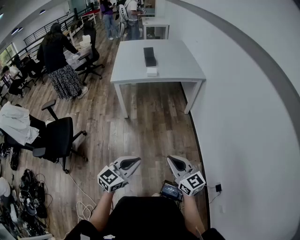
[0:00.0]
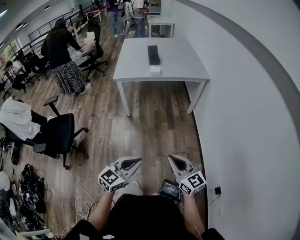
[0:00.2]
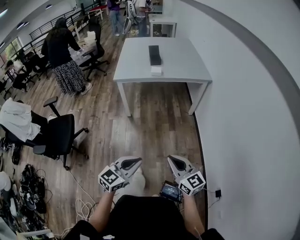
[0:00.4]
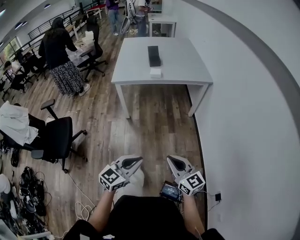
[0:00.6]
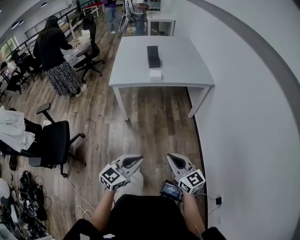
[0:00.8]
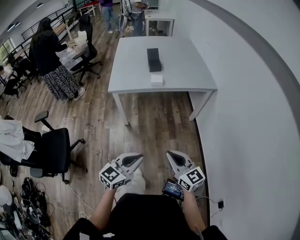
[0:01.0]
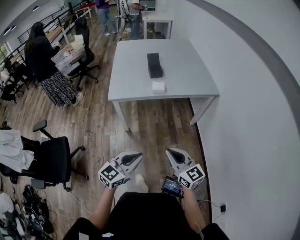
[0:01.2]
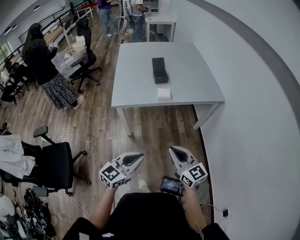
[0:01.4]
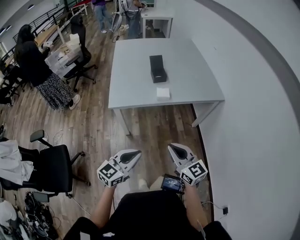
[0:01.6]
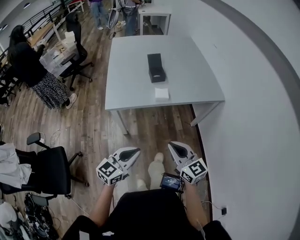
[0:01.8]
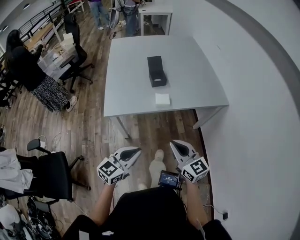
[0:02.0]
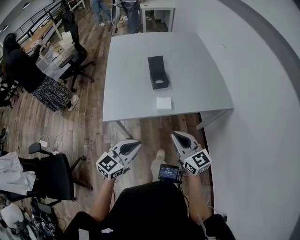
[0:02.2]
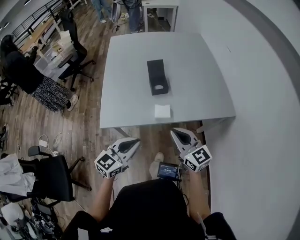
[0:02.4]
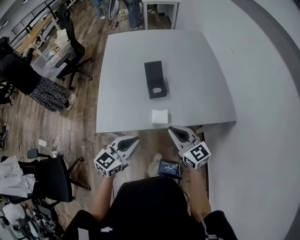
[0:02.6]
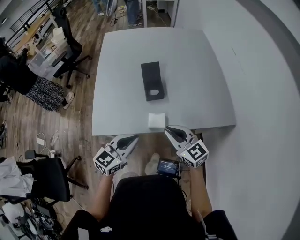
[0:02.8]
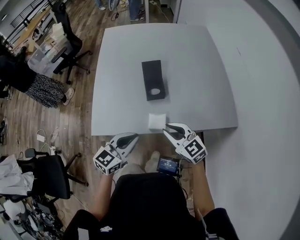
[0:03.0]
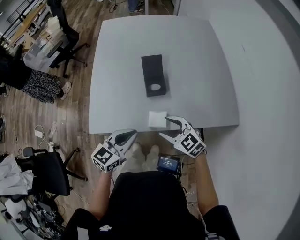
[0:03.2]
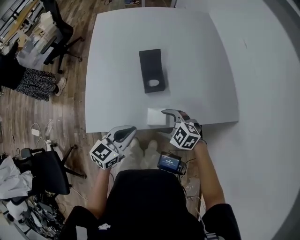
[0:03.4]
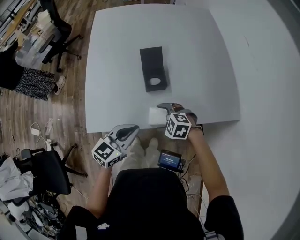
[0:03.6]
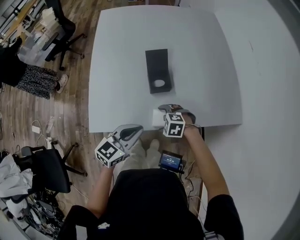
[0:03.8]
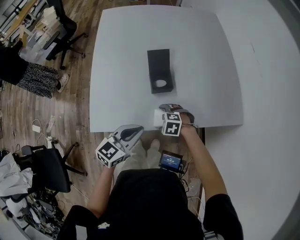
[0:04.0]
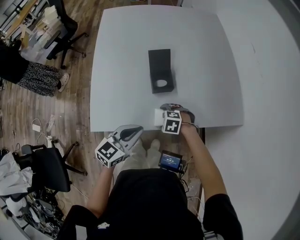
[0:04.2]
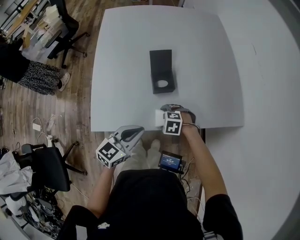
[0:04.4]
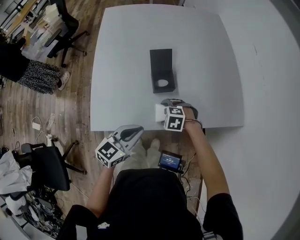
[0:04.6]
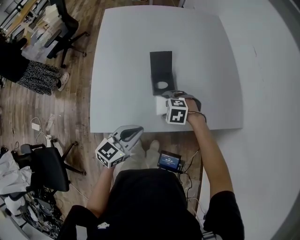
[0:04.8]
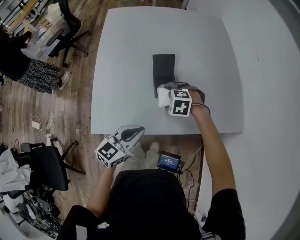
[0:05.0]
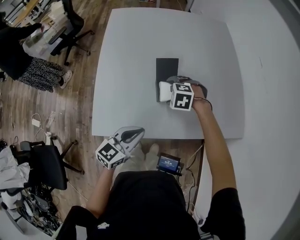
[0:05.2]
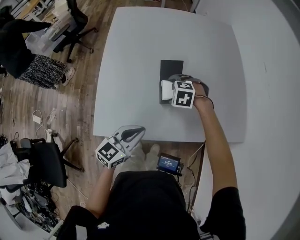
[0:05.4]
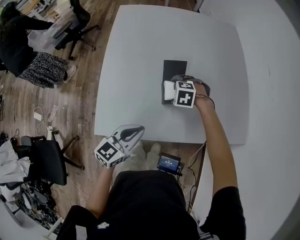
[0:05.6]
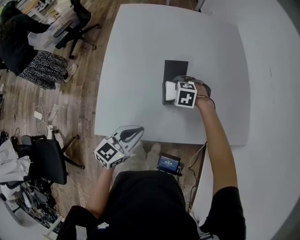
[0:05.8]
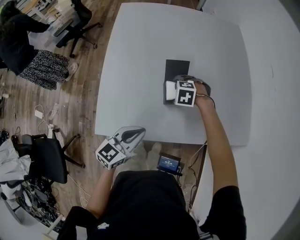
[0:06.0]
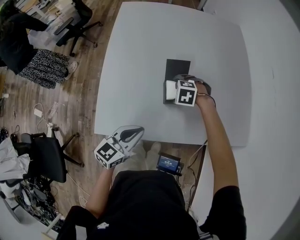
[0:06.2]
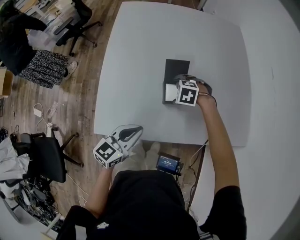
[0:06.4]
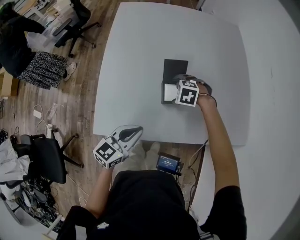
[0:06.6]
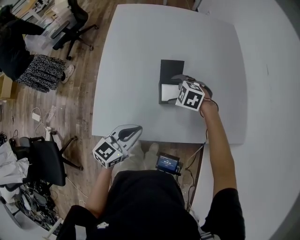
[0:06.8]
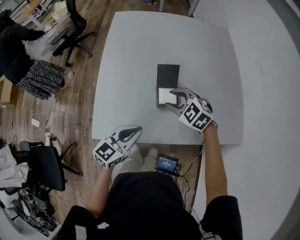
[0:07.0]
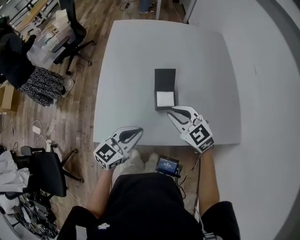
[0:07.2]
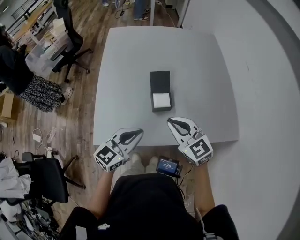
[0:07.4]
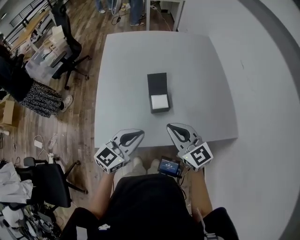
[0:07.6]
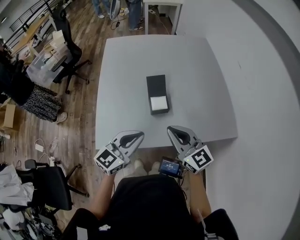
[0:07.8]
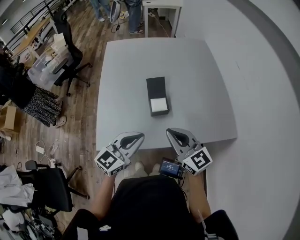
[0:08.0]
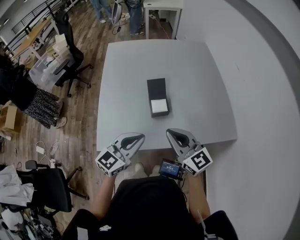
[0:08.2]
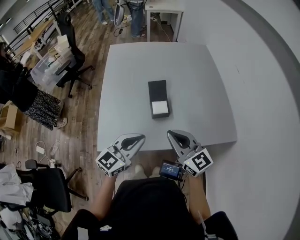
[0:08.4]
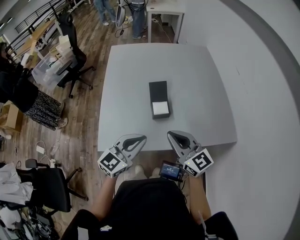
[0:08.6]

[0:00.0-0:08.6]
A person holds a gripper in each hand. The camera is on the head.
0:00.0 to 0:01.4: Both grippers travel together forward, some 40 cm.
0:01.4 to 0:02.8: The pair of grippers is taken forward, approximately 40 cm.
0:02.8 to 0:04.4: The right gripper heads downward, covering some 25 cm, angles its fingers downward, by some 60 degrees, and opens up. The left gripper ends up approximately 10 cm from where it was.
0:04.4 to 0:05.8: The right gripper changes place by some 20 cm. Meanwhile the left gripper moves about 5 cm.
0:05.8 to 0:07.2: The right gripper is displaced upward by some 20 cm, angles its fingers upward, by roughly 50 degrees, and closes its fingers, while the left gripper moves approximately 5 cm.
0:07.2 to 0:08.6: The left gripper travels upward and backward by roughly 10 cm. Meanwhile the right gripper is displaced backward and upward by some 15 cm, and changes its angle by about 30 degrees.

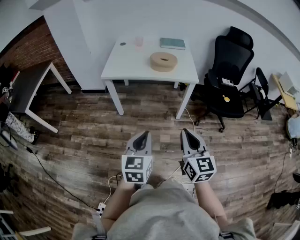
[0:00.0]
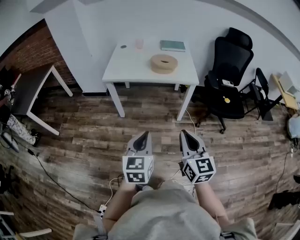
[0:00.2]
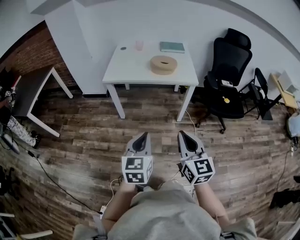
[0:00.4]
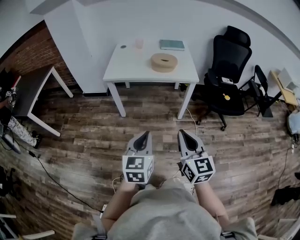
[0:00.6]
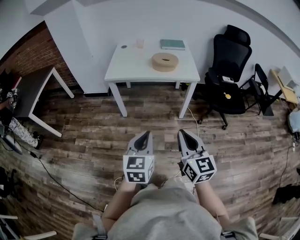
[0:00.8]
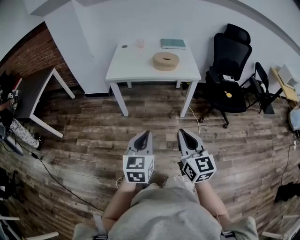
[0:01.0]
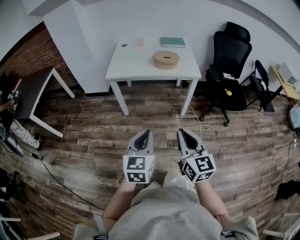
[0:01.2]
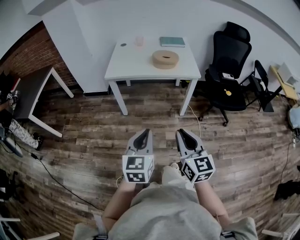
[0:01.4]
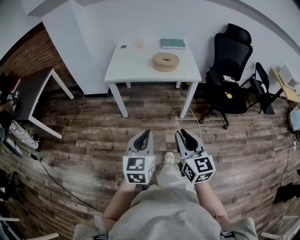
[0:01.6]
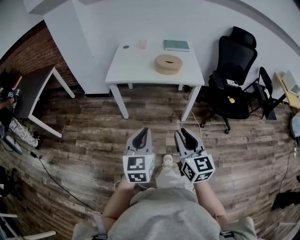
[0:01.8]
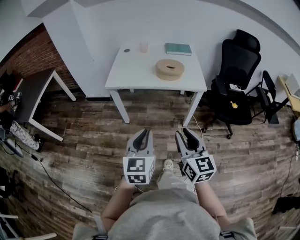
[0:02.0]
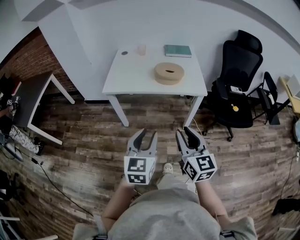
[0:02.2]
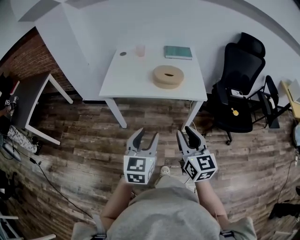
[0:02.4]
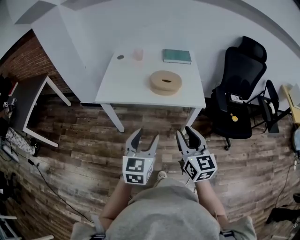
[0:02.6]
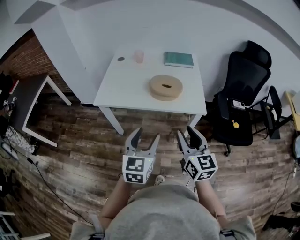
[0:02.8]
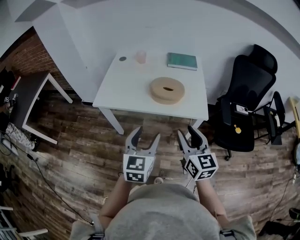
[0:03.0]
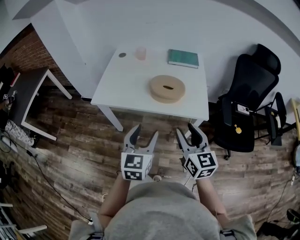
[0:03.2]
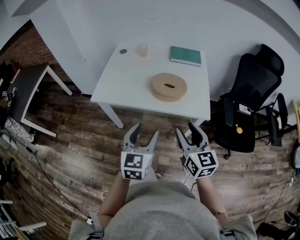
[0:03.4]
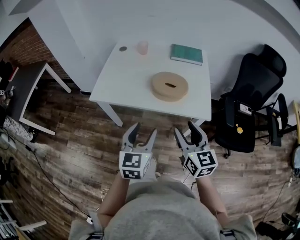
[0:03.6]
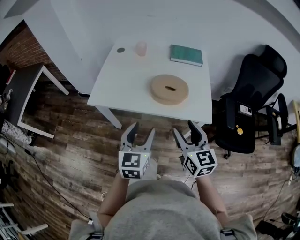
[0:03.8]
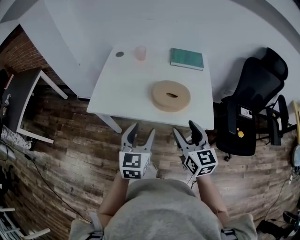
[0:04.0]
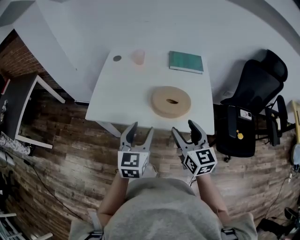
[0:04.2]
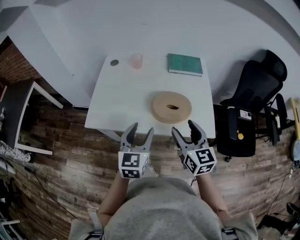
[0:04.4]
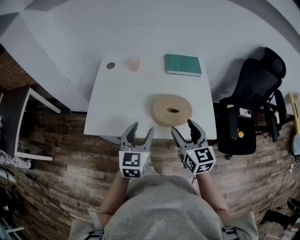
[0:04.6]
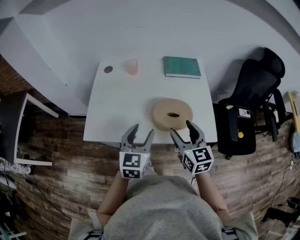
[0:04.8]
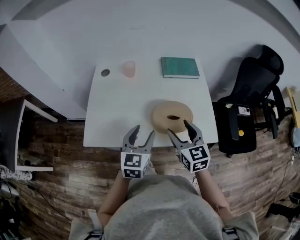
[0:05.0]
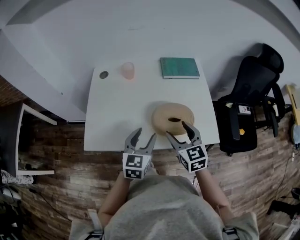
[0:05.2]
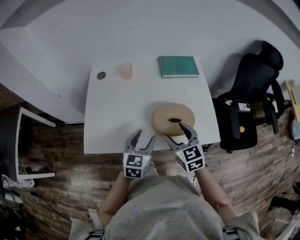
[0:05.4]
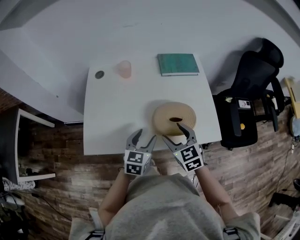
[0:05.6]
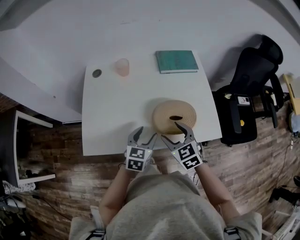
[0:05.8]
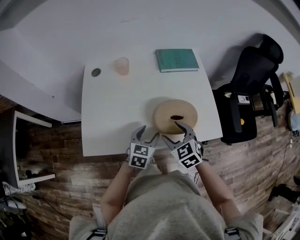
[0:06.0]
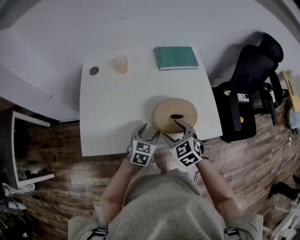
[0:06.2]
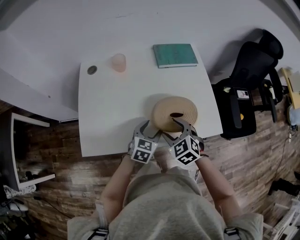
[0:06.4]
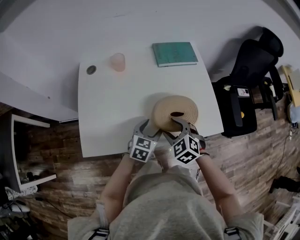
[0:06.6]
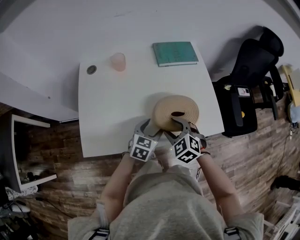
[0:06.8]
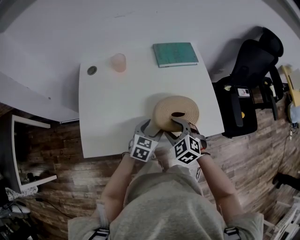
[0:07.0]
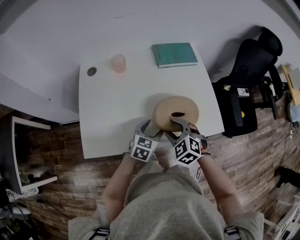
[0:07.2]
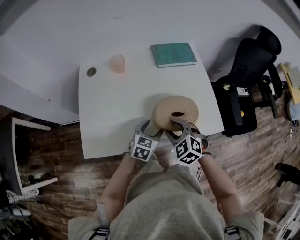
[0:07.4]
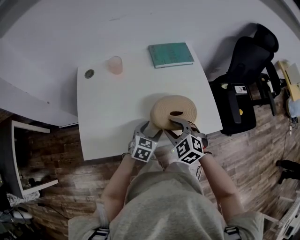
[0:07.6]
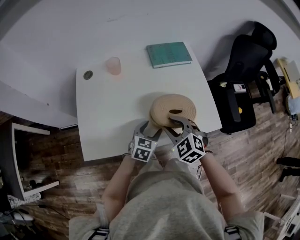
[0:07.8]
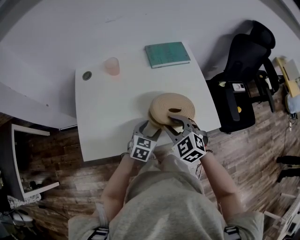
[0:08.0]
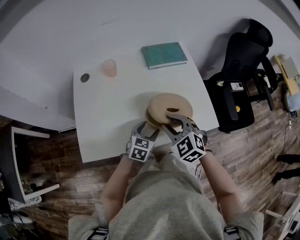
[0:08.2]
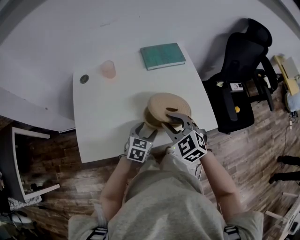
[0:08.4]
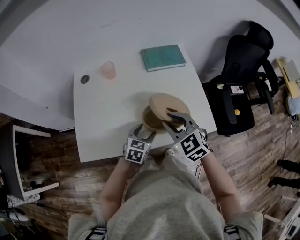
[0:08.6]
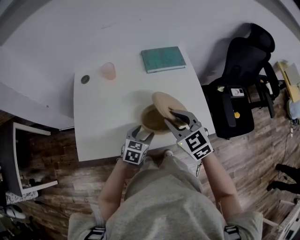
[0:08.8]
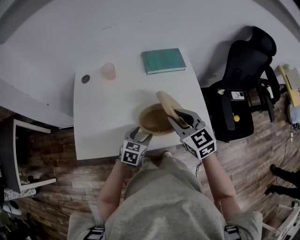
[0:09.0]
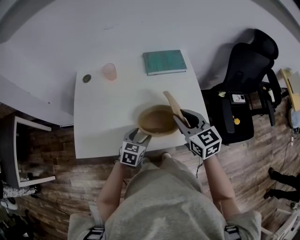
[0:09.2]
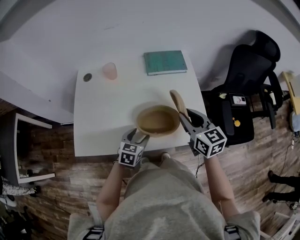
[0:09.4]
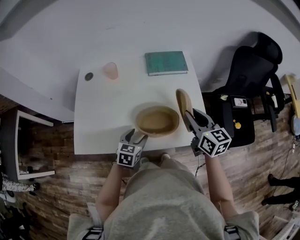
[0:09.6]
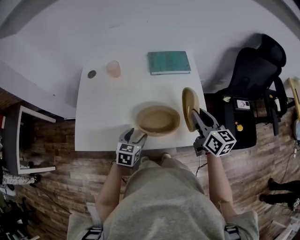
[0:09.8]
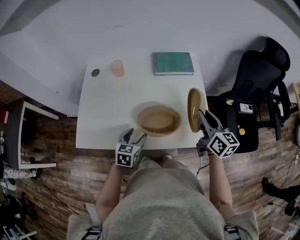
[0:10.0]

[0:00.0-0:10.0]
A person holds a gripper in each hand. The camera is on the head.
0:00.0 to 0:01.4: The right gripper shifts approximately 5 cm to the left.
0:01.4 to 0:02.8: Both grippers move forward, about 30 cm. The left gripper opens, while the right gripper opens up.
0:02.8 to 0:04.2: The grippers both shift forward by about 20 cm. The right gripper opens.
0:04.2 to 0:05.8: The right gripper heads forward, downward and to the left, covering some 20 cm, and rotates roughly 30 degrees. Meanwhile the left gripper travels forward and downward by approximately 20 cm, and changes its angle by about 30 degrees.
0:05.8 to 0:07.2: The left gripper moves roughly 5 cm. Meanwhile the right gripper turns by approximately 20 degrees.
0:07.2 to 0:08.6: The right gripper travels upward by about 10 cm.
0:08.6 to 0:10.0: The right gripper shifts roughly 20 cm to the right, and rolls clockwise, seen from behind, by roughly 50 degrees.

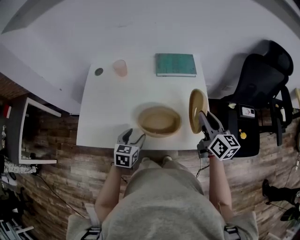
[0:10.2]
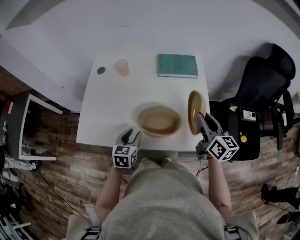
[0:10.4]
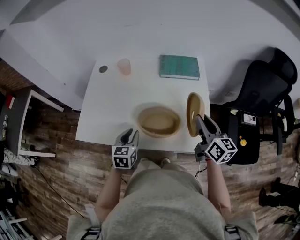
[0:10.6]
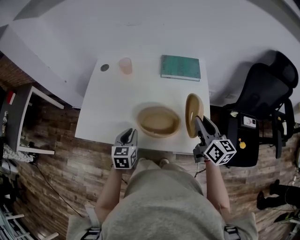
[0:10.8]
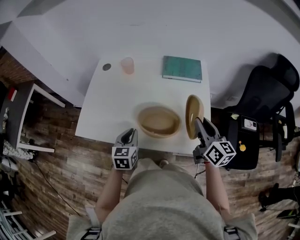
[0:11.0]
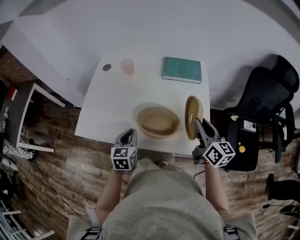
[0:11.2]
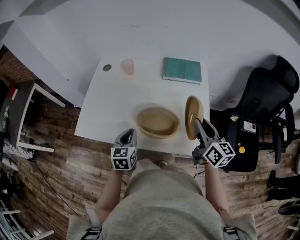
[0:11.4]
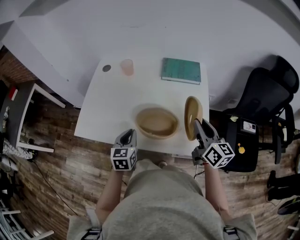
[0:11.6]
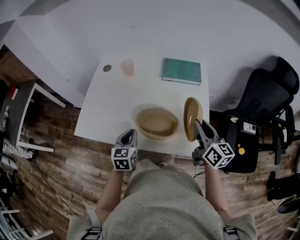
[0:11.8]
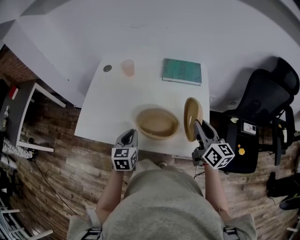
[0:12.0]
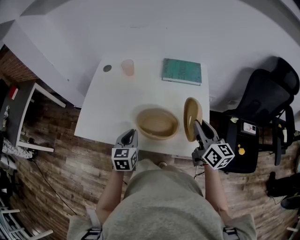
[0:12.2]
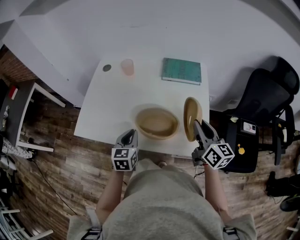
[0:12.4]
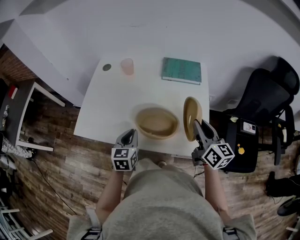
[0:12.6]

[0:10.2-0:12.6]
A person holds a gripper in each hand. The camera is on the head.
0:10.2 to 0:11.4: The left gripper closes up.
0:11.4 to 0:12.6: Both grippers stay about where they are.

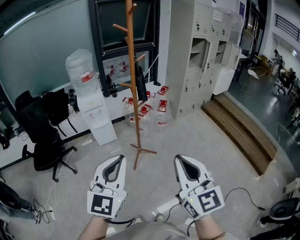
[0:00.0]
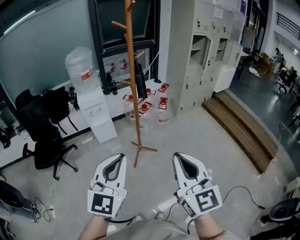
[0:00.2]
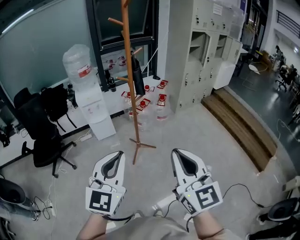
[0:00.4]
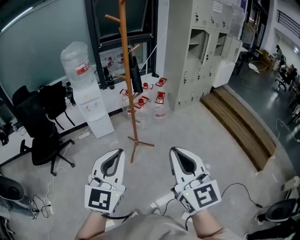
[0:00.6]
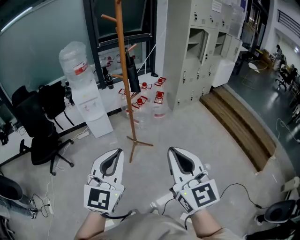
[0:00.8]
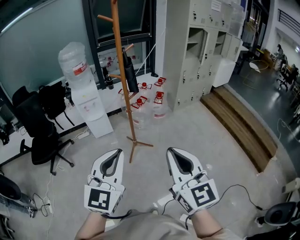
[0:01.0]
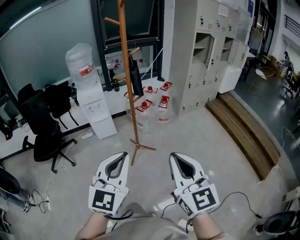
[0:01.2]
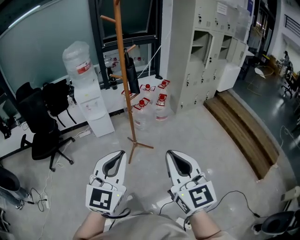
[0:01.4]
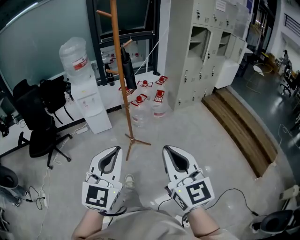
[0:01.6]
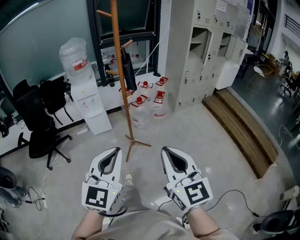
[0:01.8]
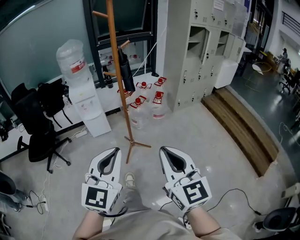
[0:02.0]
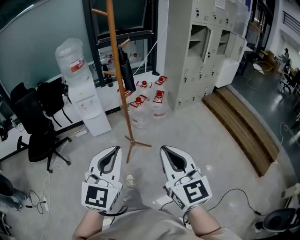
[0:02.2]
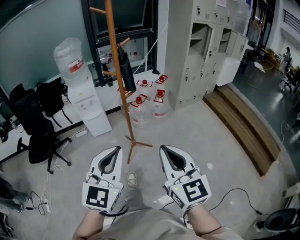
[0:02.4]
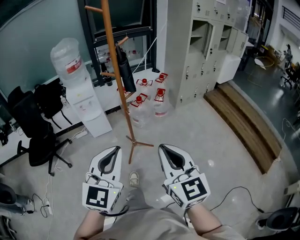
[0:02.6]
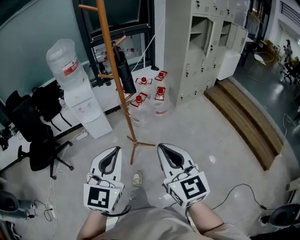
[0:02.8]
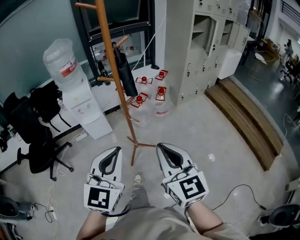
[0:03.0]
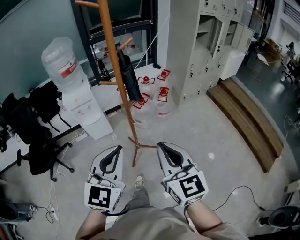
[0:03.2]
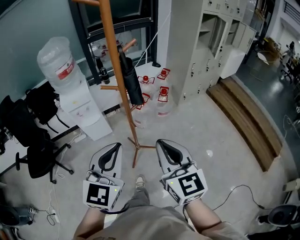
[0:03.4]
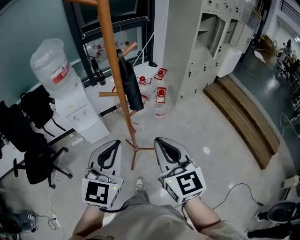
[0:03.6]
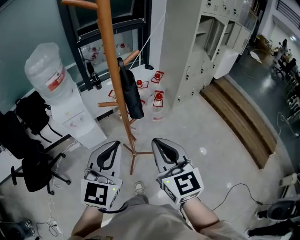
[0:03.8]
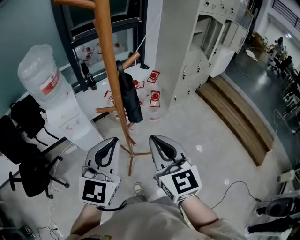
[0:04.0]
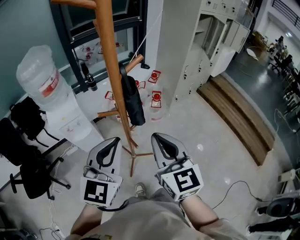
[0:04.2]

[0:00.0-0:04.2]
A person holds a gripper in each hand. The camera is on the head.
0:00.0 to 0:01.4: Both grippers travel together to the right, about 10 cm.
0:01.4 to 0:02.8: The right gripper heads forward and downward, covering roughly 15 cm, while the left gripper moves forward, some 15 cm.
0:02.8 to 0:04.2: The grippers both shift forward by some 30 cm.
